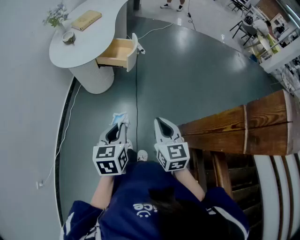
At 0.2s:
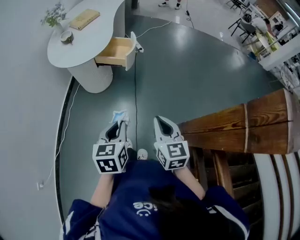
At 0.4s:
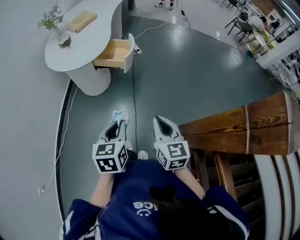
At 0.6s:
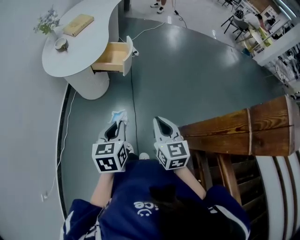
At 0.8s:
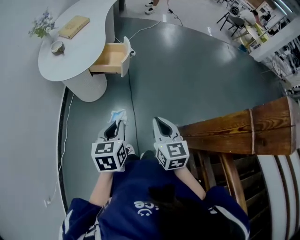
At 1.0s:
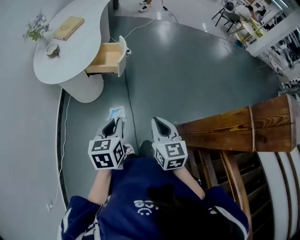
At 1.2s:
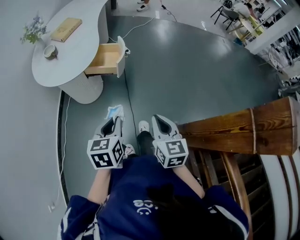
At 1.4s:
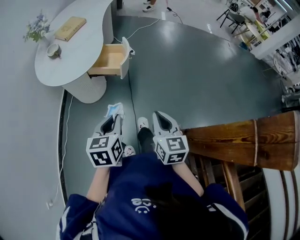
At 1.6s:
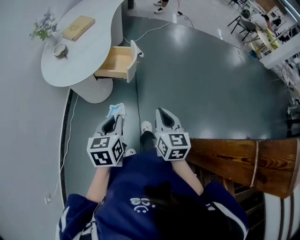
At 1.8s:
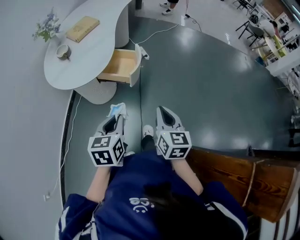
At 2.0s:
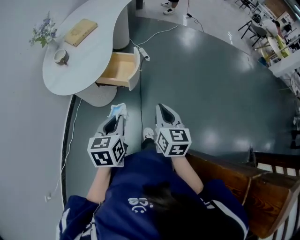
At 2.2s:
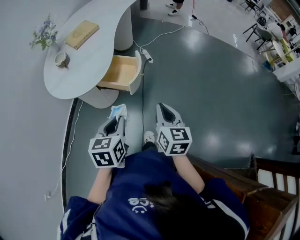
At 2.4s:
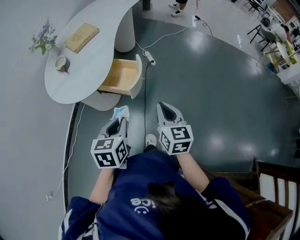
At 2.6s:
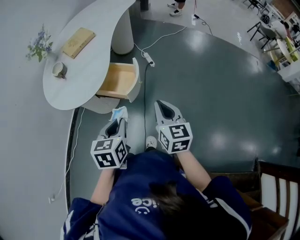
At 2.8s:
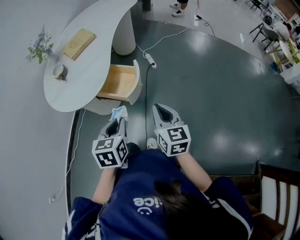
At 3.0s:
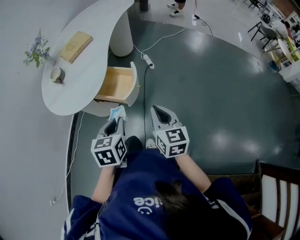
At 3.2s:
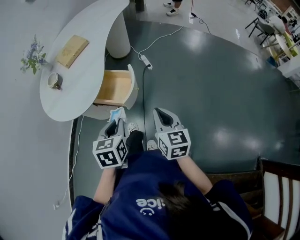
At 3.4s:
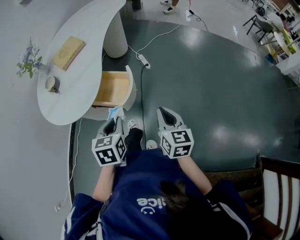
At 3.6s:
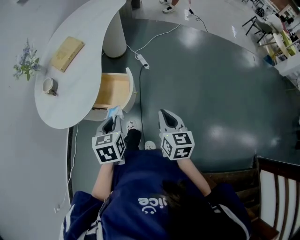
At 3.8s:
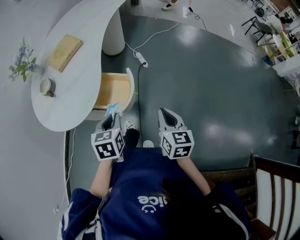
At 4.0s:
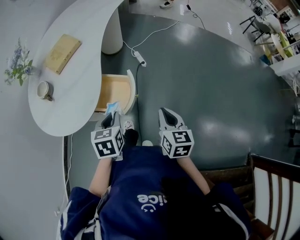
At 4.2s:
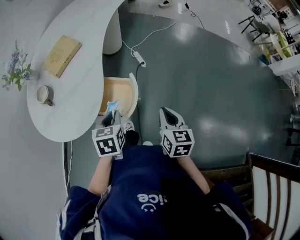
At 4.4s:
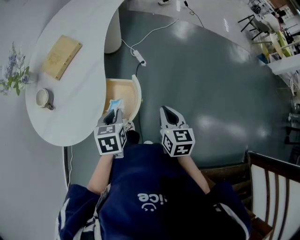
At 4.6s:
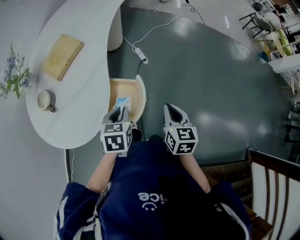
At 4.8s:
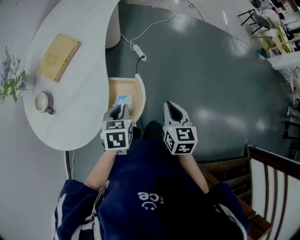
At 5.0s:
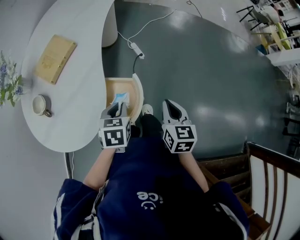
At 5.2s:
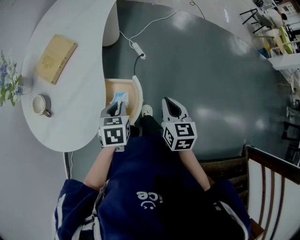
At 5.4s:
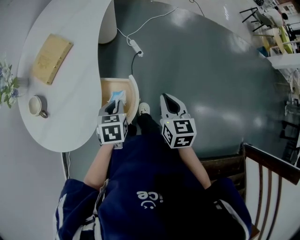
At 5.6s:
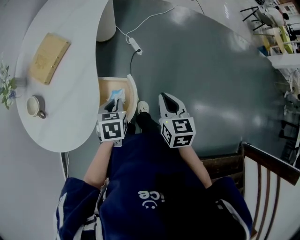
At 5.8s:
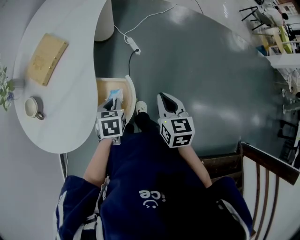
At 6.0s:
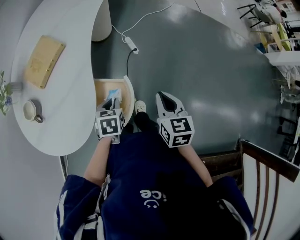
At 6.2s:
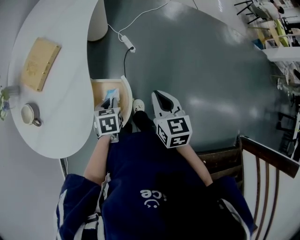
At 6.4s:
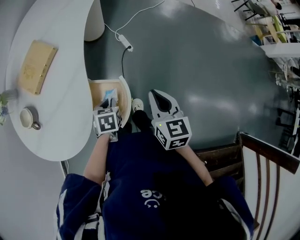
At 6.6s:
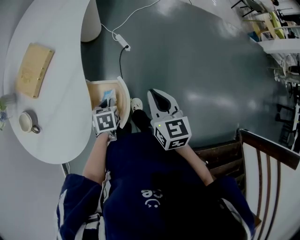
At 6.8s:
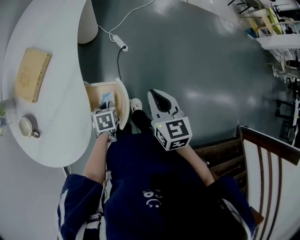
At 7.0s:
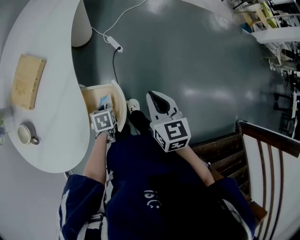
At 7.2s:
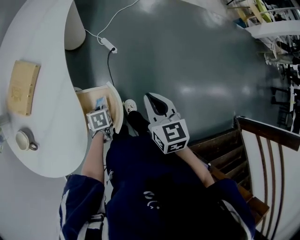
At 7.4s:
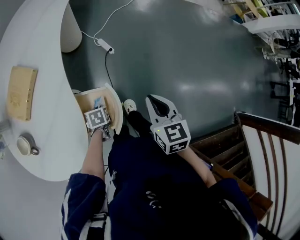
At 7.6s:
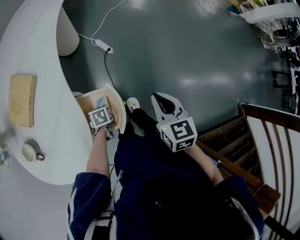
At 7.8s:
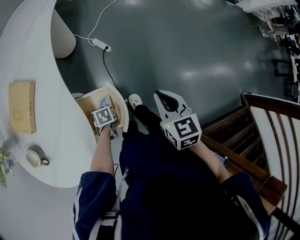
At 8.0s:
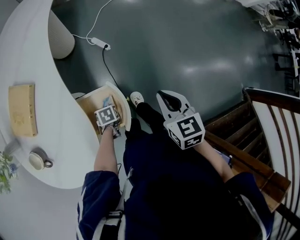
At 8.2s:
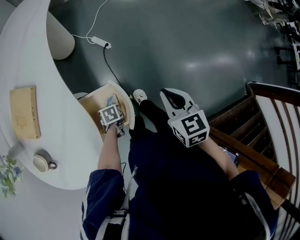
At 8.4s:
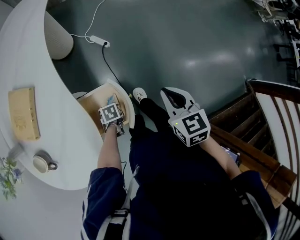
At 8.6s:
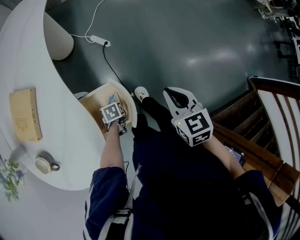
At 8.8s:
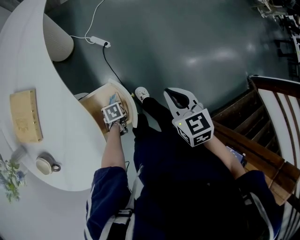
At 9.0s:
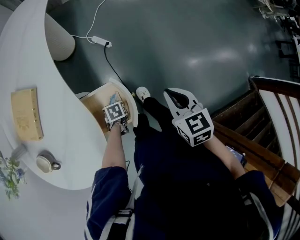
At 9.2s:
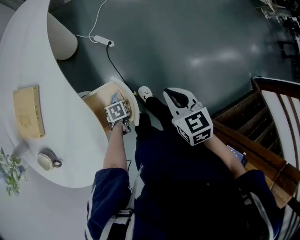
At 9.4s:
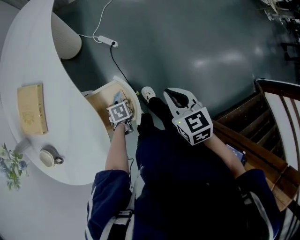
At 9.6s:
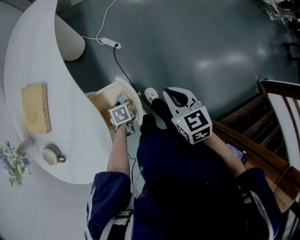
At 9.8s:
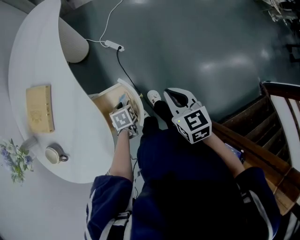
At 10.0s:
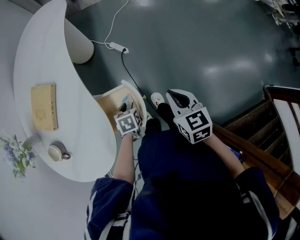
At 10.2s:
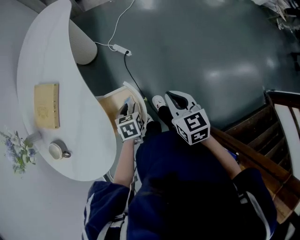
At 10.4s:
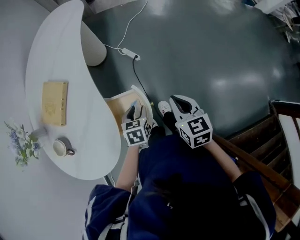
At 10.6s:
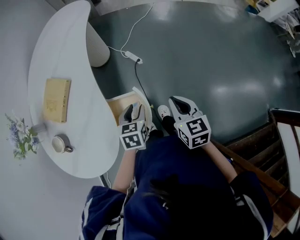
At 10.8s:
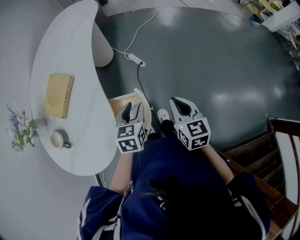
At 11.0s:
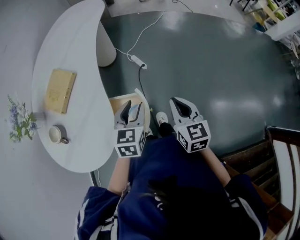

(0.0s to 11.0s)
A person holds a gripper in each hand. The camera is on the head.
0.0s - 1.6s: Both grippers travel together forward, some 15 cm.
1.6s - 3.2s: The left gripper heads forward and to the right, covering about 20 cm, while the right gripper heads forward, covering some 25 cm.
3.2s - 4.8s: The two grippers go some 20 cm forward.
4.8s - 6.2s: The left gripper moves downward and forward, roughly 10 cm. The right gripper shifts some 5 cm forward.
6.2s - 7.8s: The left gripper shifts some 15 cm downward.
7.8s - 9.4s: The left gripper opens.
9.4s - 11.0s: The right gripper moves upward, roughly 5 cm. The left gripper is displaced upward by some 30 cm, and tips its fingers upward by some 40 degrees.

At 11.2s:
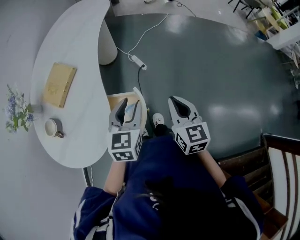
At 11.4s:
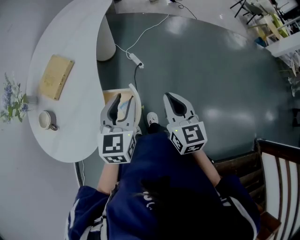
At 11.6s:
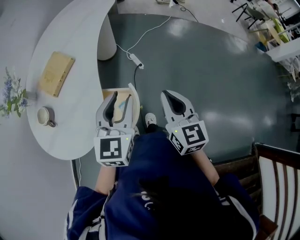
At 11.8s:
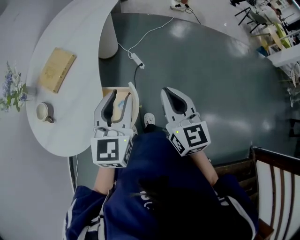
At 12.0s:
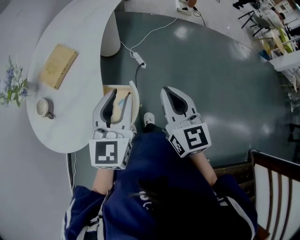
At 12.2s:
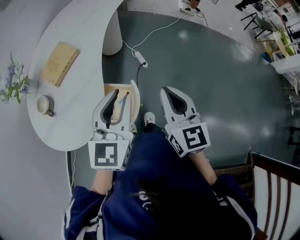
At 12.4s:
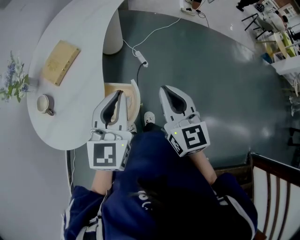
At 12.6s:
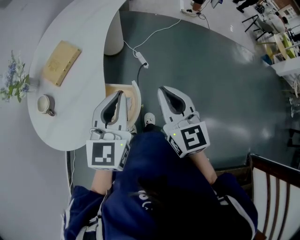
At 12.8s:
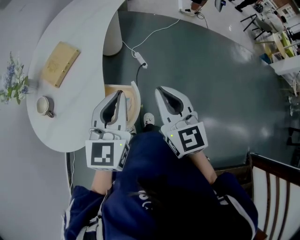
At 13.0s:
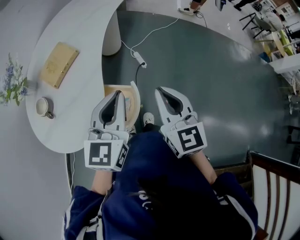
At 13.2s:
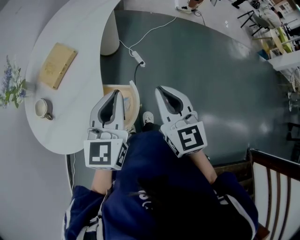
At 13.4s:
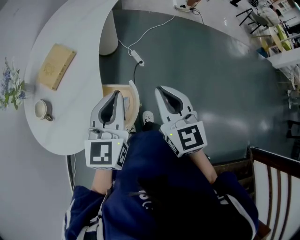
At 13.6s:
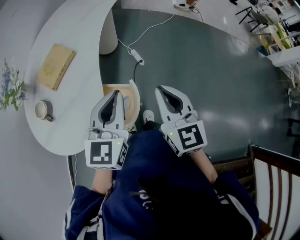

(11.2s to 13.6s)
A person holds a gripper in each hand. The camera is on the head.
11.2s - 12.4s: The two grippers go approximately 10 cm upward. The left gripper closes its fingers.
12.4s - 13.6s: The grippers stay close to where they were, moving slightly.

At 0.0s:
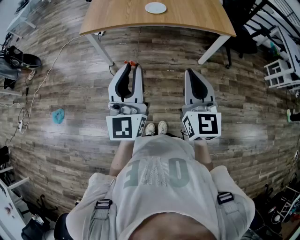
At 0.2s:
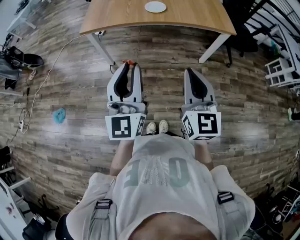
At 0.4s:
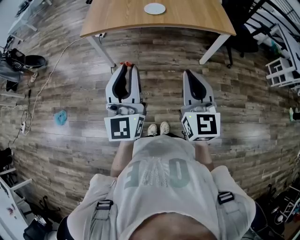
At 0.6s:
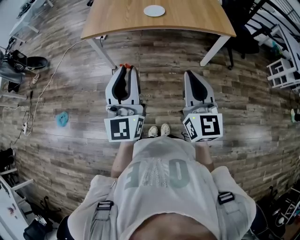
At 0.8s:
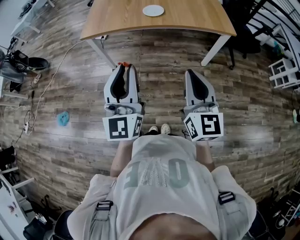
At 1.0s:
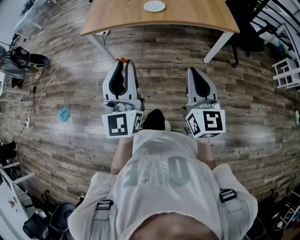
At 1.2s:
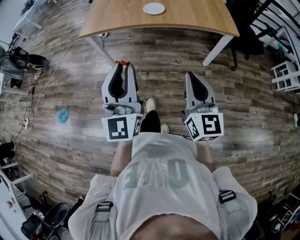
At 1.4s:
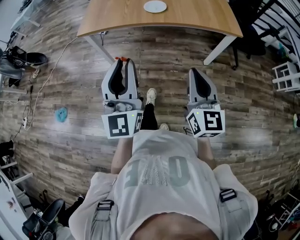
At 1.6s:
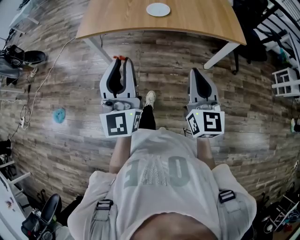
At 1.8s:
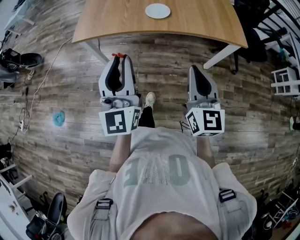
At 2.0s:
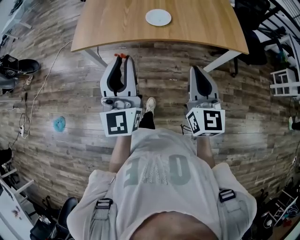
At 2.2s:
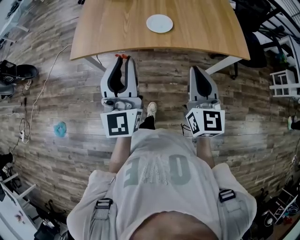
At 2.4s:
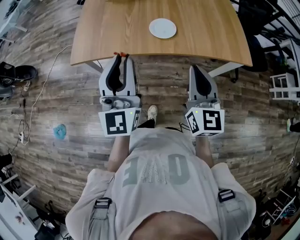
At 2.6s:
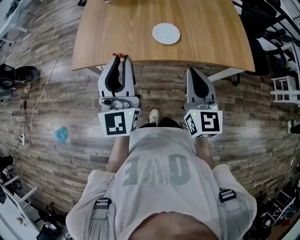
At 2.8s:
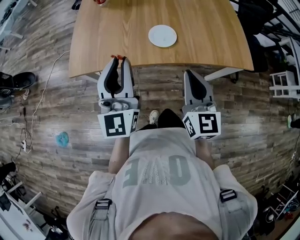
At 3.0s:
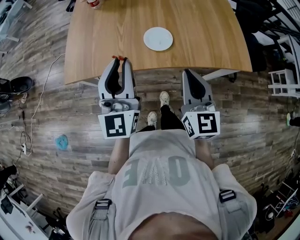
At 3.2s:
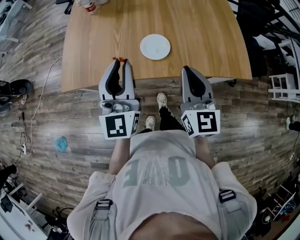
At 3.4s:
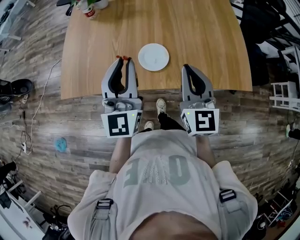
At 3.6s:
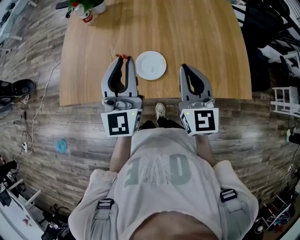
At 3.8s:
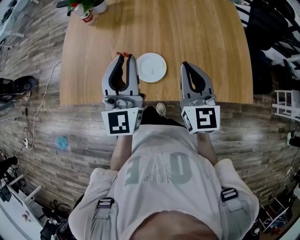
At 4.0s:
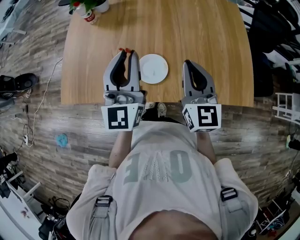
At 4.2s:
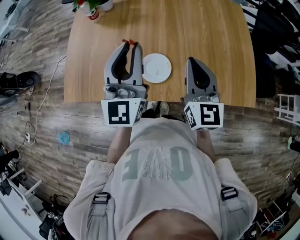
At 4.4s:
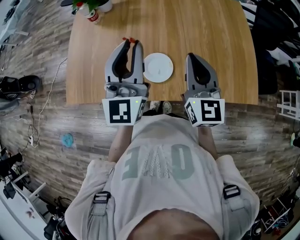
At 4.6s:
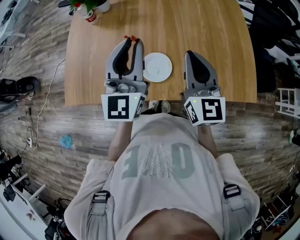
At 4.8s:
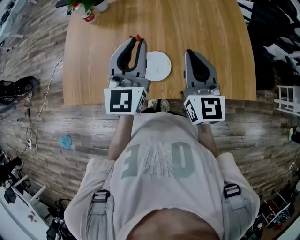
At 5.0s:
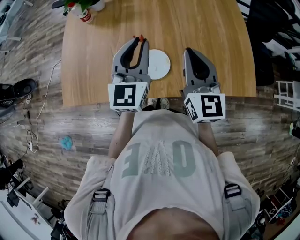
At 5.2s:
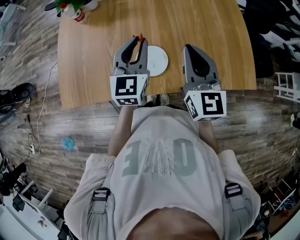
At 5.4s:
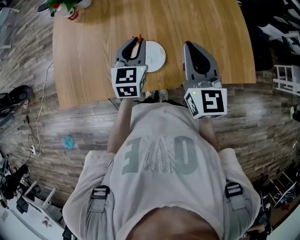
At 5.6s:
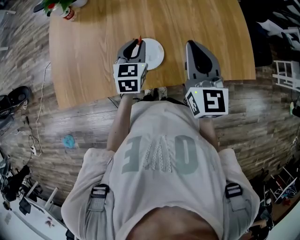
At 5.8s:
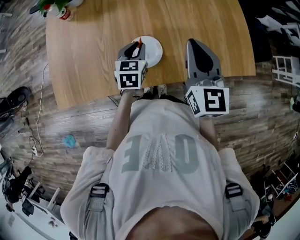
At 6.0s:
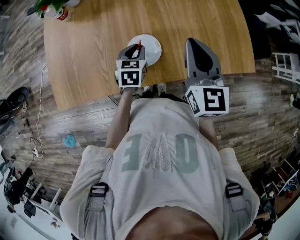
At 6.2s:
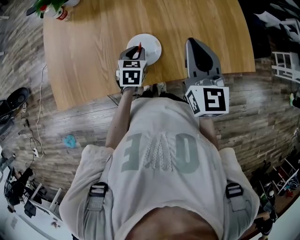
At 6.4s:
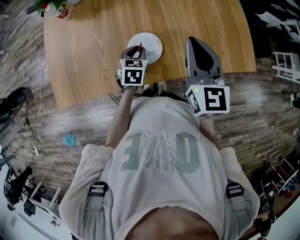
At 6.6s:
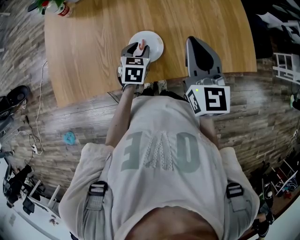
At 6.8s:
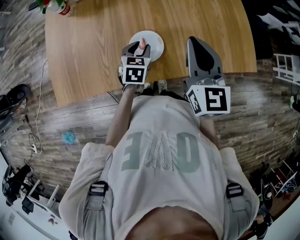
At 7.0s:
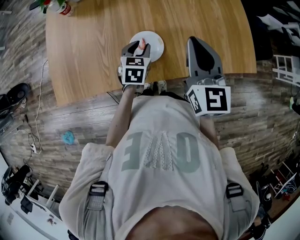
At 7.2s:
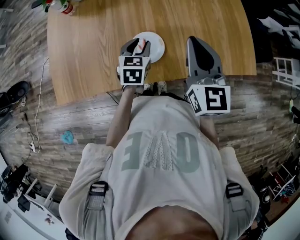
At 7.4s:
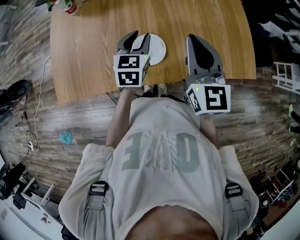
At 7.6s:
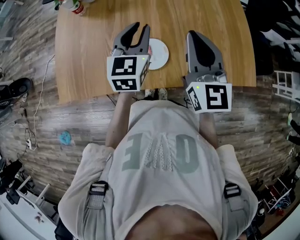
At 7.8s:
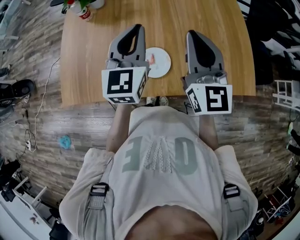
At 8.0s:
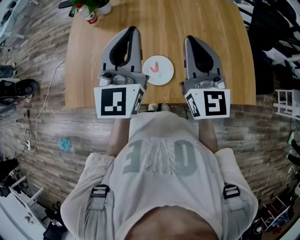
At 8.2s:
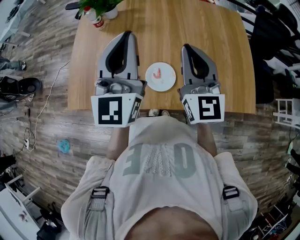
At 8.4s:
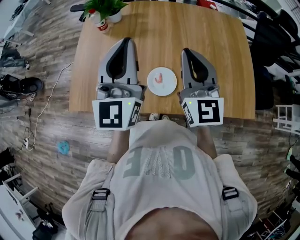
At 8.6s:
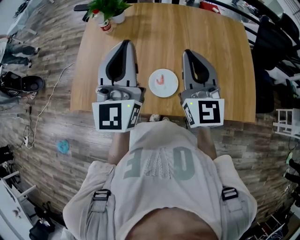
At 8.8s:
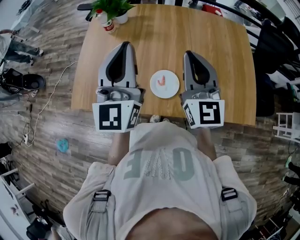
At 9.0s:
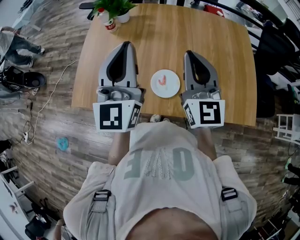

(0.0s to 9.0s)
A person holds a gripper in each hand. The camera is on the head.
0.0s - 1.6s: The grippers both shift forward by some 10 cm.
1.6s - 3.0s: The two grippers go some 30 cm forward.
3.0s - 4.4s: The left gripper heads forward and to the right, covering approximately 20 cm. Meanwhile the right gripper goes approximately 20 cm forward.
4.4s - 6.0s: The left gripper shifts approximately 30 cm downward, and points its fingers some 60 degrees further downward.
6.0s - 7.6s: The left gripper shifts roughly 20 cm upward, and rotates some 30 degrees. The right gripper shifts by about 5 cm.
7.6s - 9.0s: The left gripper travels upward and to the left by roughly 20 cm, and changes its angle by roughly 30 degrees. Meanwhile the right gripper changes place by approximately 5 cm.

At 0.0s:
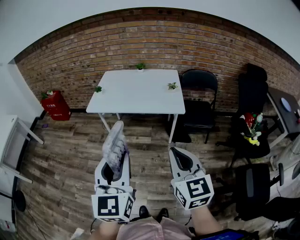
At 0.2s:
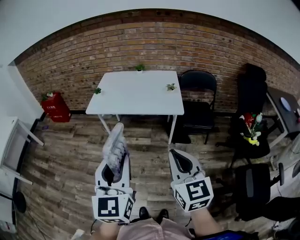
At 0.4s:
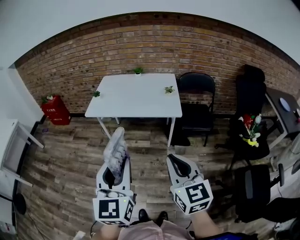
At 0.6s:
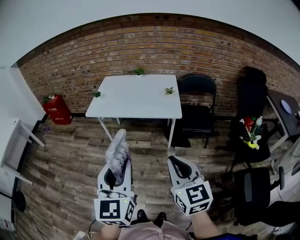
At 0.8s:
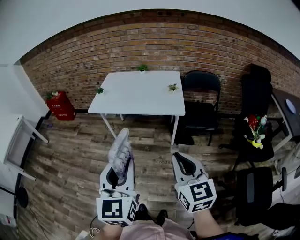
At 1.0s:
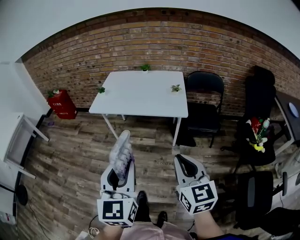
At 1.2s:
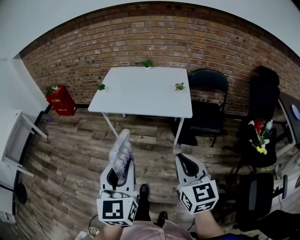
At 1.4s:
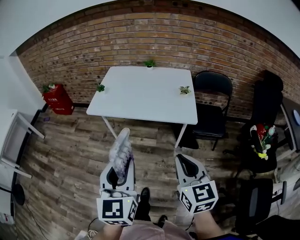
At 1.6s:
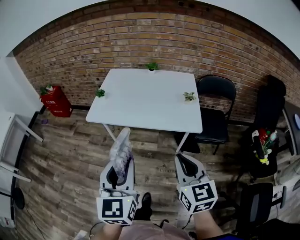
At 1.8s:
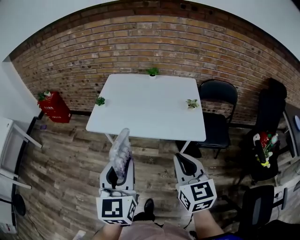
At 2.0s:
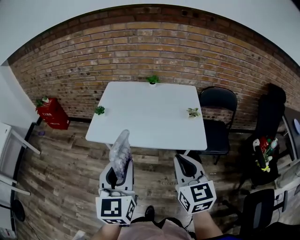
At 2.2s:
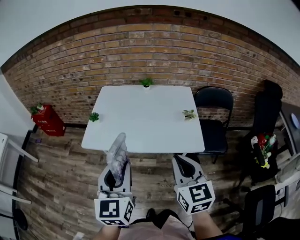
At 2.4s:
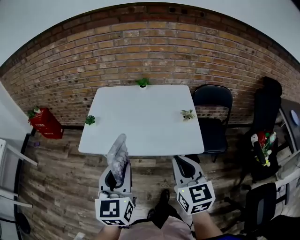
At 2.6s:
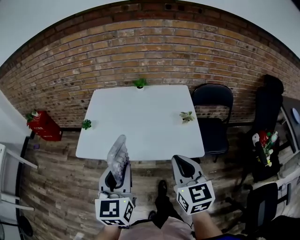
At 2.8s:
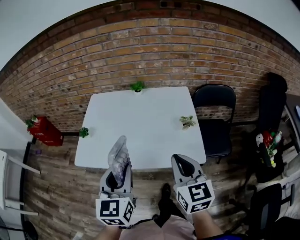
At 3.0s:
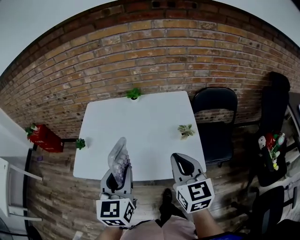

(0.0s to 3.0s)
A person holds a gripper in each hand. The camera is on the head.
0.0s - 1.6s: The grippers both shift forward by approximately 20 cm.
1.6s - 3.0s: The two grippers go roughly 30 cm forward.
